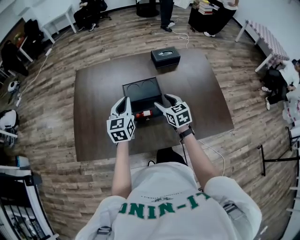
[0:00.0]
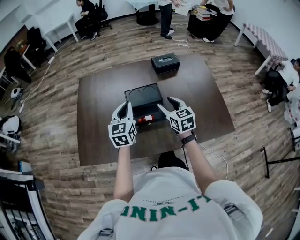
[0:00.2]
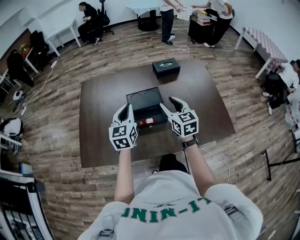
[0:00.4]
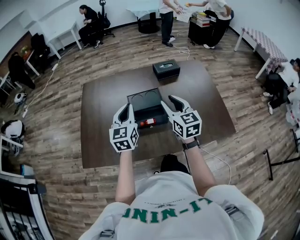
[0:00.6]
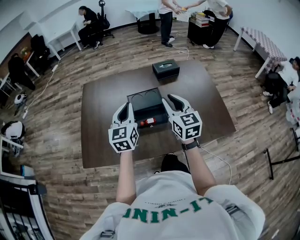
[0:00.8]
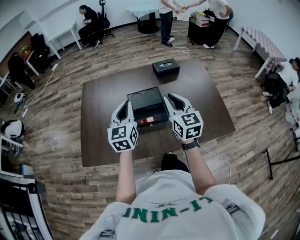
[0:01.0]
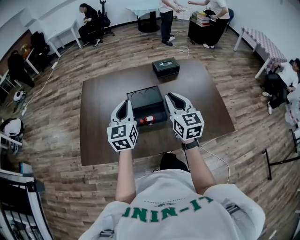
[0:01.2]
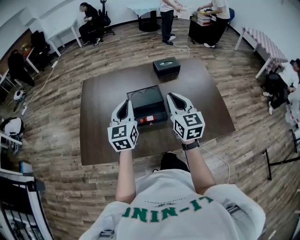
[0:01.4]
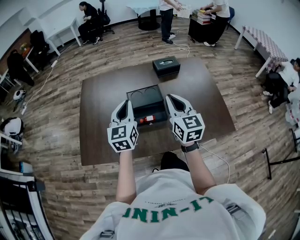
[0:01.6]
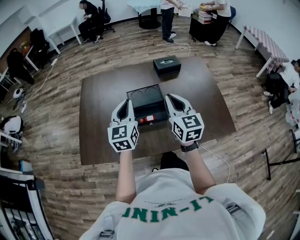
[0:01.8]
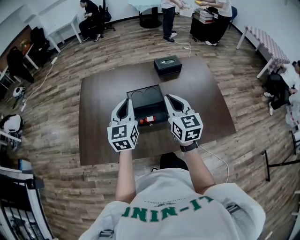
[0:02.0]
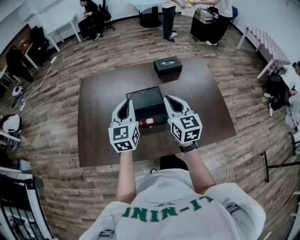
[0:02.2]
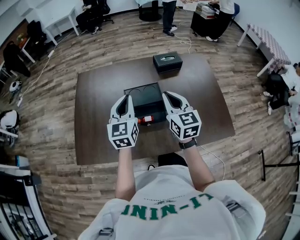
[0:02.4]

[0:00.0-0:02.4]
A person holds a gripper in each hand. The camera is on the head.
0:00.0 to 0:01.2: The left gripper moves upward and backward, about 10 cm; the right gripper heads upward and backward, covering some 20 cm, turns by some 20 degrees, and closes up.
0:01.2 to 0:02.4: Both grippers travel together forward, roughly 5 cm.

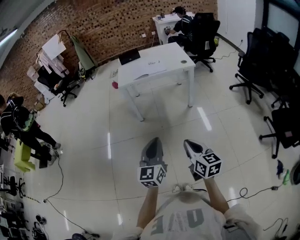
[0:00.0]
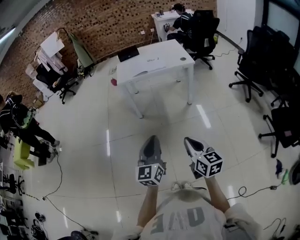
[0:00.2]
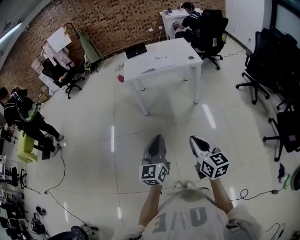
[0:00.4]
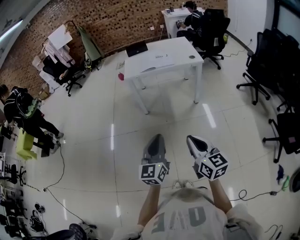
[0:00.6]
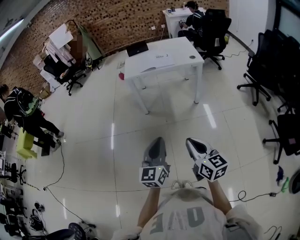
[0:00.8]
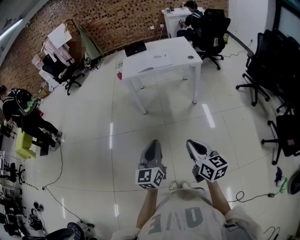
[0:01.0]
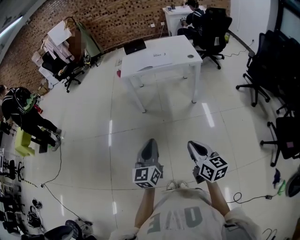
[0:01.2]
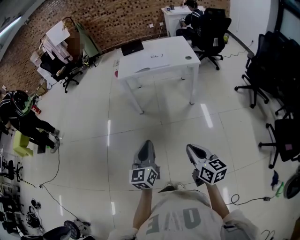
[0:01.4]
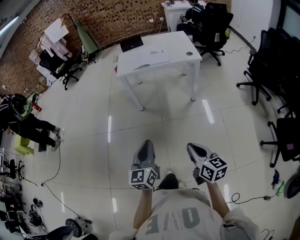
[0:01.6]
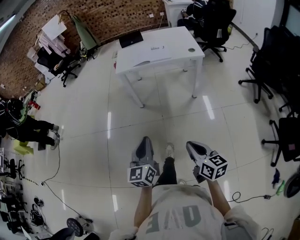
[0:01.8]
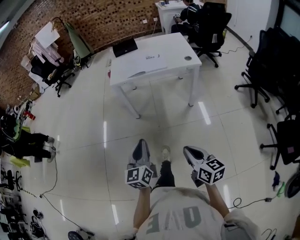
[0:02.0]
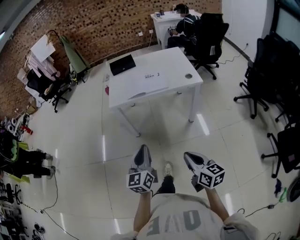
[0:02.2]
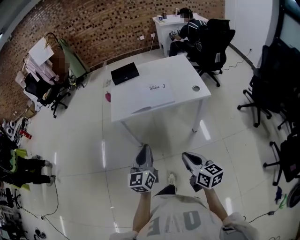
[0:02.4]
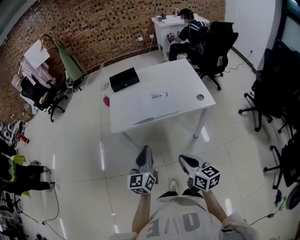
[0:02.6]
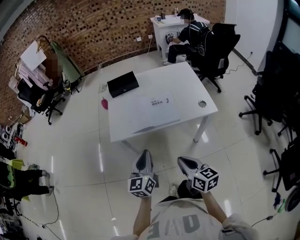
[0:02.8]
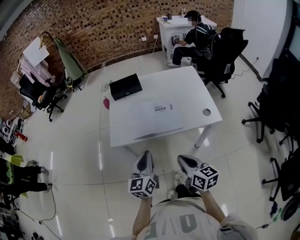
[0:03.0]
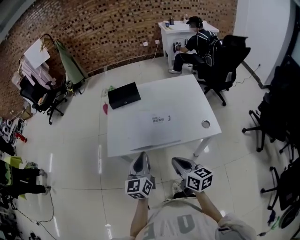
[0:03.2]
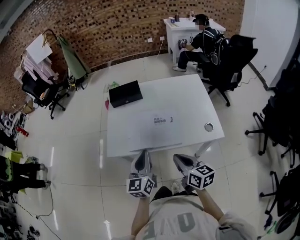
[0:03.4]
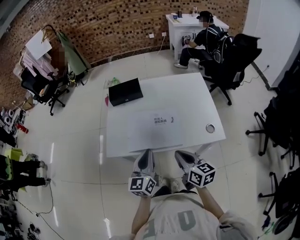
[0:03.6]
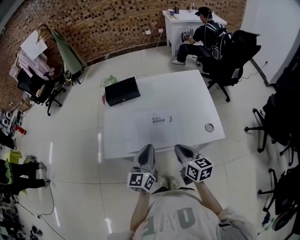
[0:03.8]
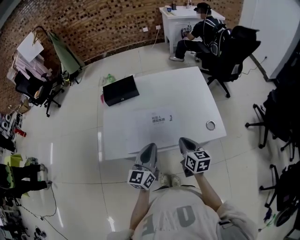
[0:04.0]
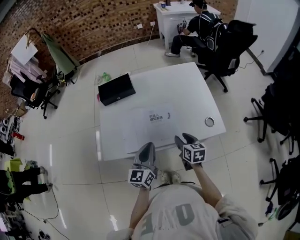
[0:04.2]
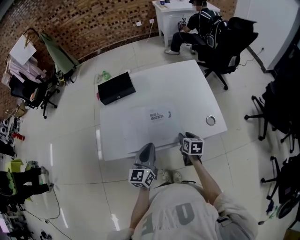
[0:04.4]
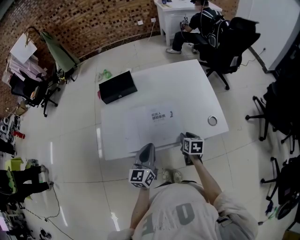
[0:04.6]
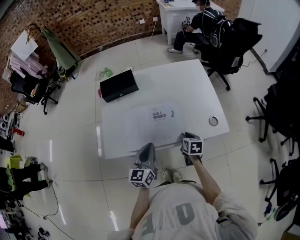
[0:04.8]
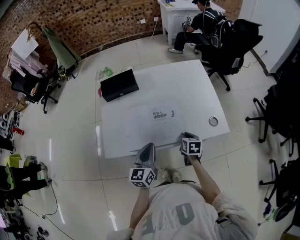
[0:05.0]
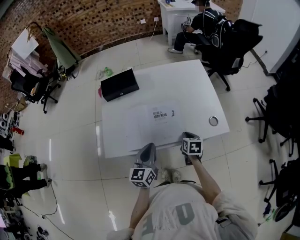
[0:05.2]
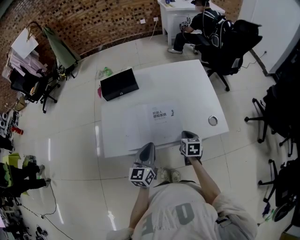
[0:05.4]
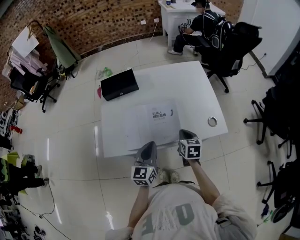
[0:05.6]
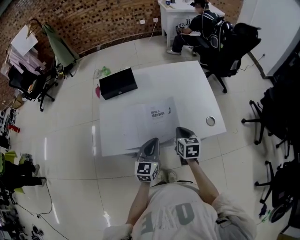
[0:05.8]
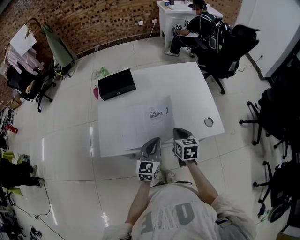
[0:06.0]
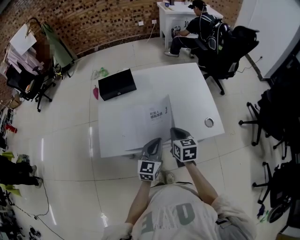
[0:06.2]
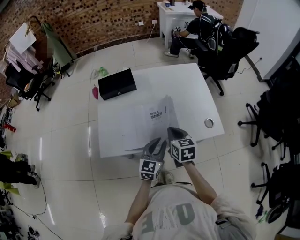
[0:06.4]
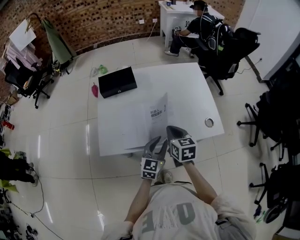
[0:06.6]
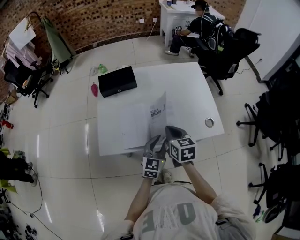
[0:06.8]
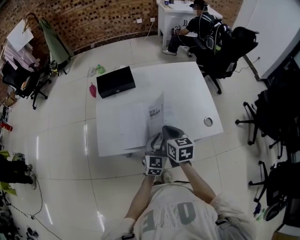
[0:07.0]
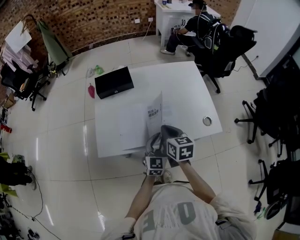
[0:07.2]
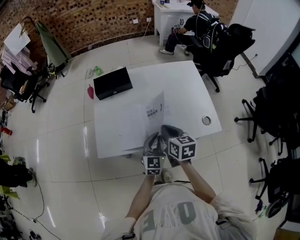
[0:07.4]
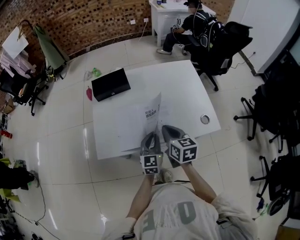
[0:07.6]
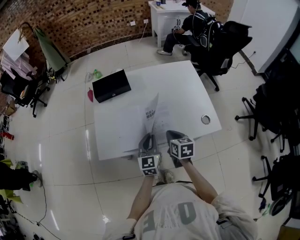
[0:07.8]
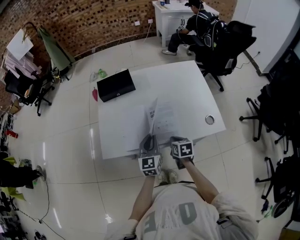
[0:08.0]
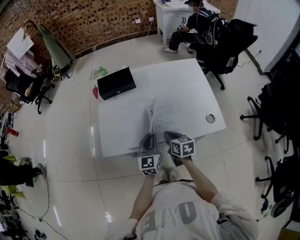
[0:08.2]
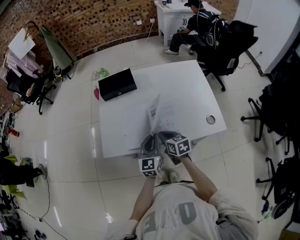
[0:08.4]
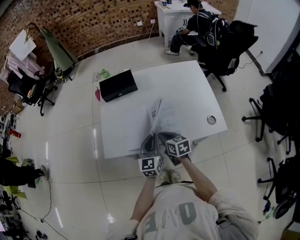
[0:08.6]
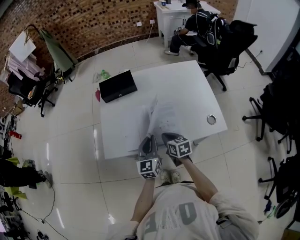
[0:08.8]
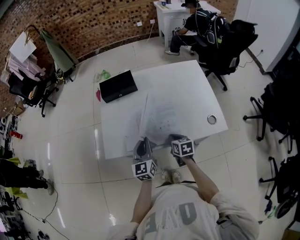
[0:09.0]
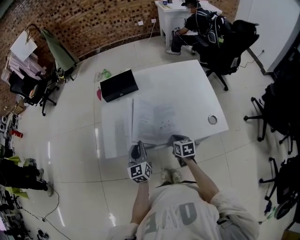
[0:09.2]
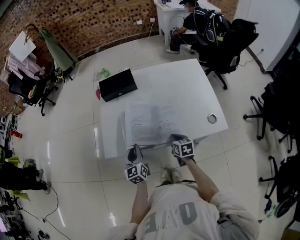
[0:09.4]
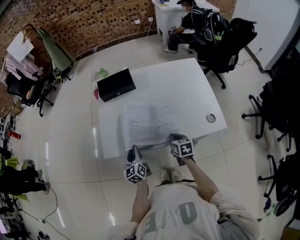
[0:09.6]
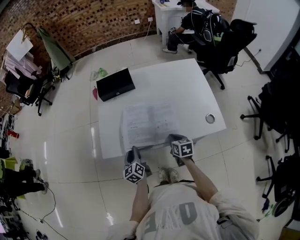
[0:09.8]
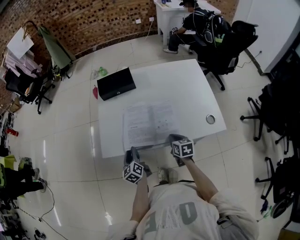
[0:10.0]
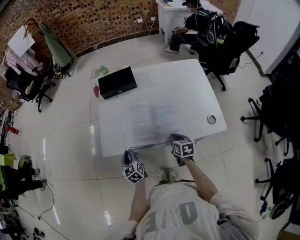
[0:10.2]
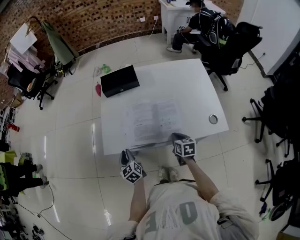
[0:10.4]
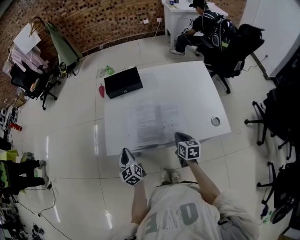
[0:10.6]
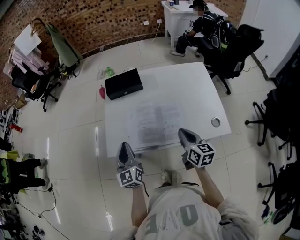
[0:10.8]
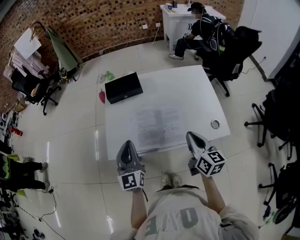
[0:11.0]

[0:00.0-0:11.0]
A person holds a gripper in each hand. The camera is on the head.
0:00.0 to 0:01.6: The left gripper changes place by roughly 5 cm, while the right gripper heads to the right, covering roughly 5 cm.
0:01.6 to 0:03.2: The two grippers travel together, forward, approximately 60 cm.
0:03.2 to 0:04.8: The right gripper is displaced downward, forward and to the right by approximately 30 cm, angles its fingers downward, by roughly 30 degrees, and opens, then closes once more. Meanwhile the left gripper goes roughly 15 cm forward and downward.
0:04.8 to 0:06.2: The left gripper shifts approximately 5 cm to the right; the right gripper travels upward and to the left by approximately 15 cm, and closes its fingers.
0:06.2 to 0:07.8: The left gripper opens, then closes again.
0:07.8 to 0:09.4: The right gripper moves up and down over approximately 10 cm, changing direction 2 times. The left gripper is displaced to the left by about 15 cm.
0:09.4 to 0:11.0: Both grippers travel together upward, roughly 20 cm. The left gripper changes its angle by approximately 20 degrees, while the right gripper points its fingers some 30 degrees further upward.

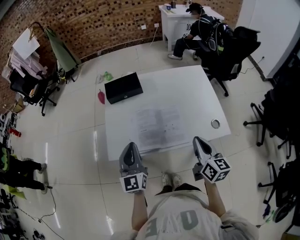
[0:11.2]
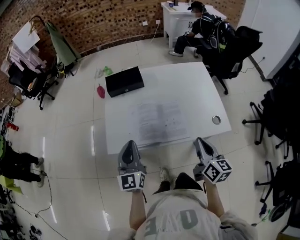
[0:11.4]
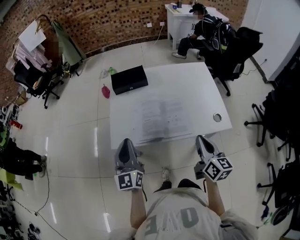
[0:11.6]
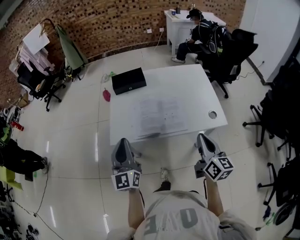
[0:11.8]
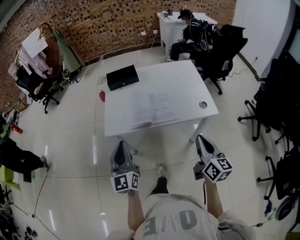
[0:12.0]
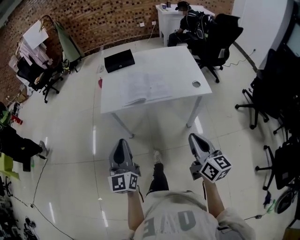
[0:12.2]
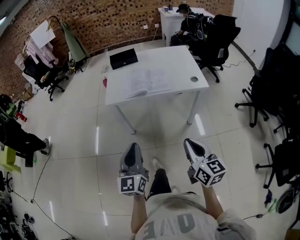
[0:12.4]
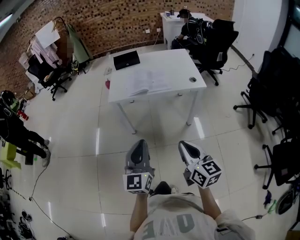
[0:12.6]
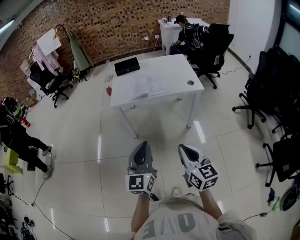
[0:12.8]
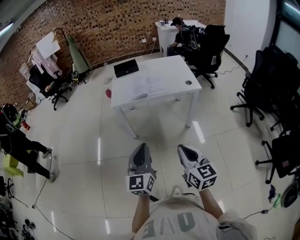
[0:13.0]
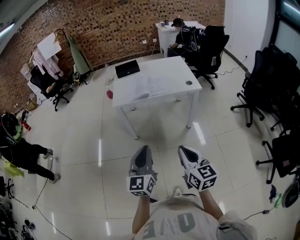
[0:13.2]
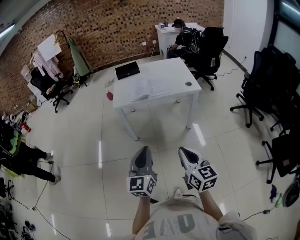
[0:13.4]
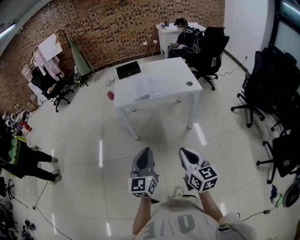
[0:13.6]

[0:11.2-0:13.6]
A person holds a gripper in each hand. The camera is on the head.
0:11.2 to 0:12.4: The two grippers travel together, backward, approximately 40 cm.
0:12.4 to 0:13.6: The left gripper heads backward, covering about 15 cm; the right gripper is displaced backward and to the left by about 15 cm.

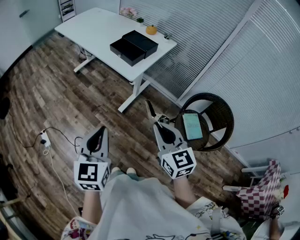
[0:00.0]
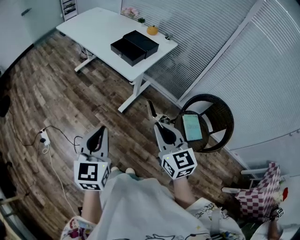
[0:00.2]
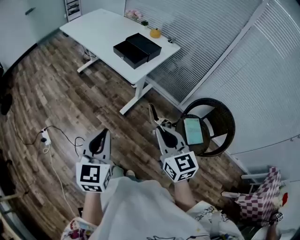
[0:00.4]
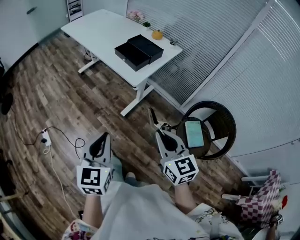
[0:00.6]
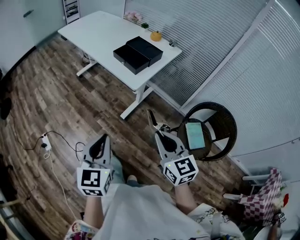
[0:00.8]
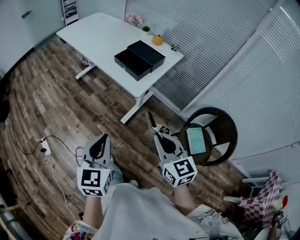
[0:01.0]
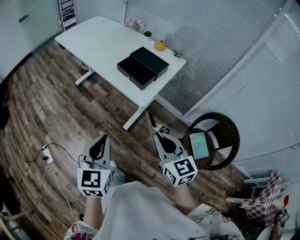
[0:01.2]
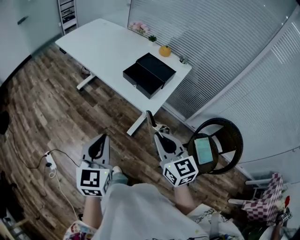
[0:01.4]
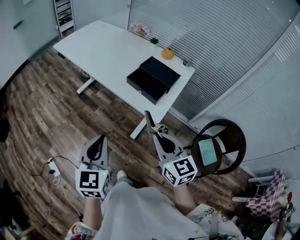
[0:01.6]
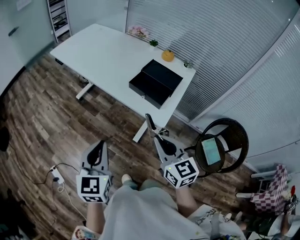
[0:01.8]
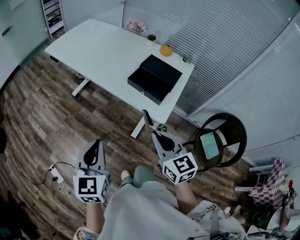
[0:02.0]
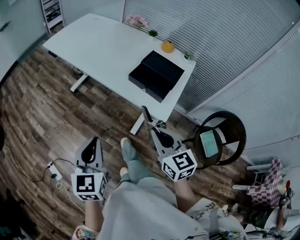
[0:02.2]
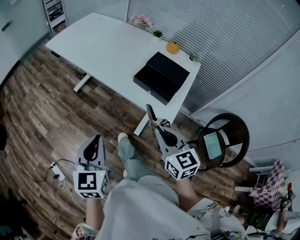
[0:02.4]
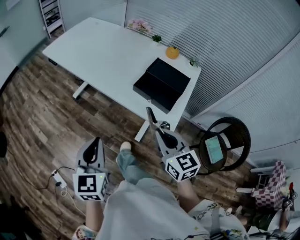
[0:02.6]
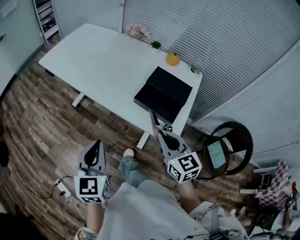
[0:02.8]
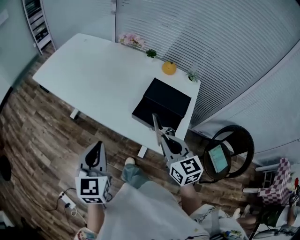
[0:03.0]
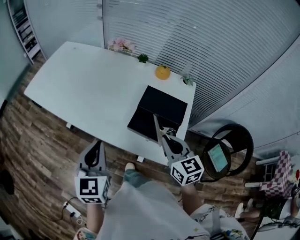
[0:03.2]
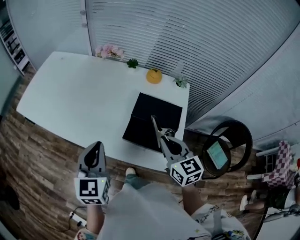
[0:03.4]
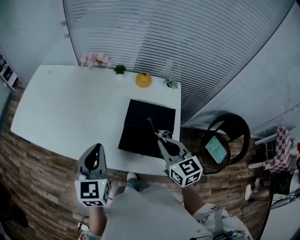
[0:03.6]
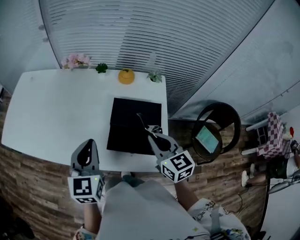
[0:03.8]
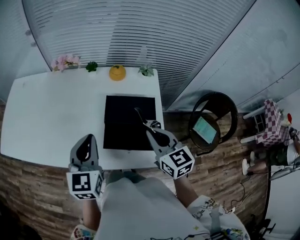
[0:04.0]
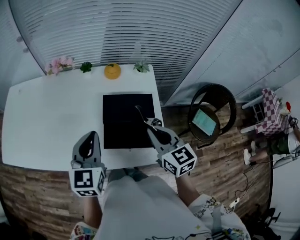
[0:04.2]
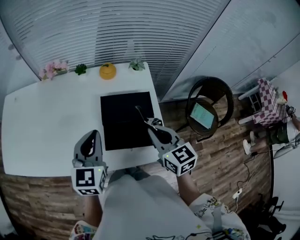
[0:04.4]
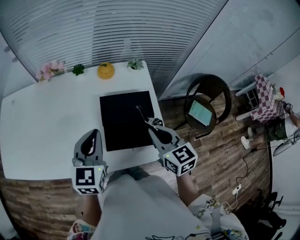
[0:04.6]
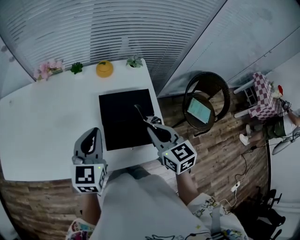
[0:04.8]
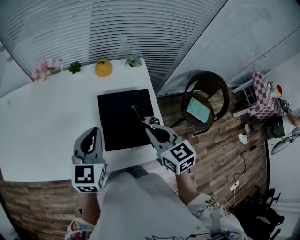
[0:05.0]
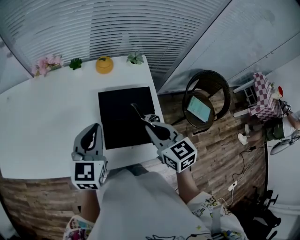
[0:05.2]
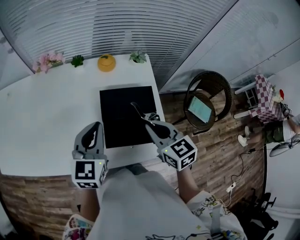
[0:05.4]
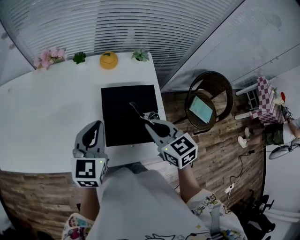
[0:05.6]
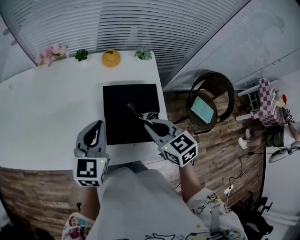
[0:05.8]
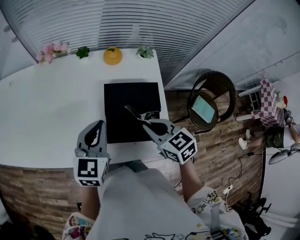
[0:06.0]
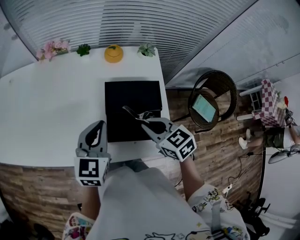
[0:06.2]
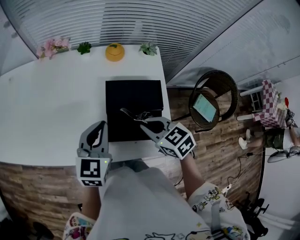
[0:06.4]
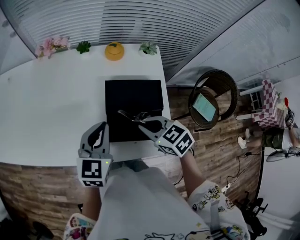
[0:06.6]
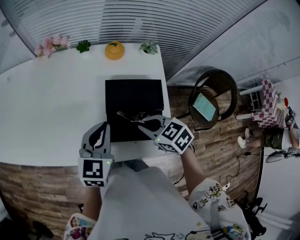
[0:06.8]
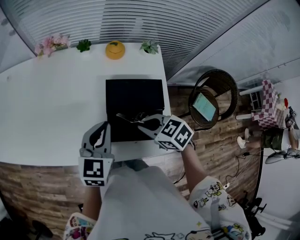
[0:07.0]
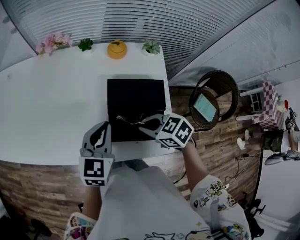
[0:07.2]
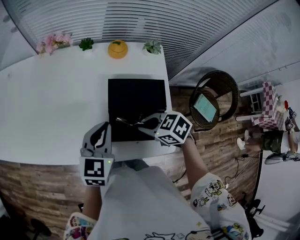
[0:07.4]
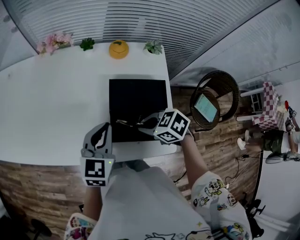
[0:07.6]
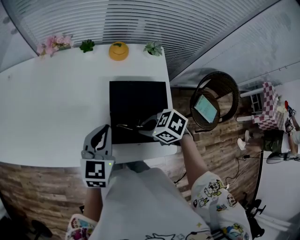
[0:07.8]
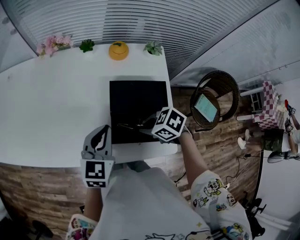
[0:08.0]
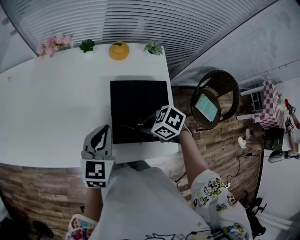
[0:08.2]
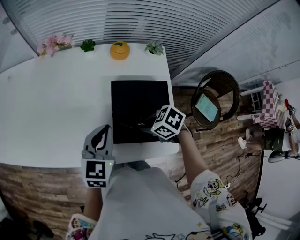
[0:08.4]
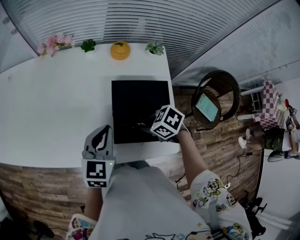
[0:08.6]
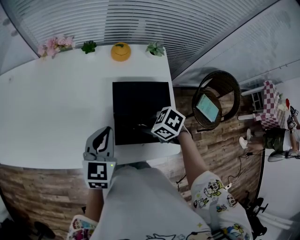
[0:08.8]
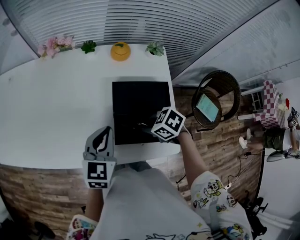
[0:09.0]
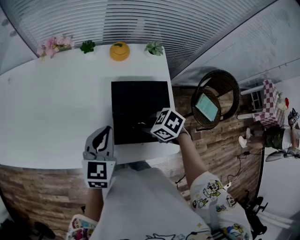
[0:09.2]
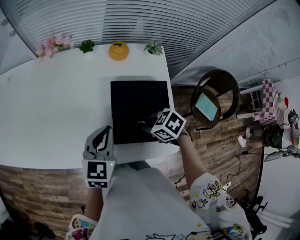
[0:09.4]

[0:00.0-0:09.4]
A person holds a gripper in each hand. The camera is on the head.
0:00.0 to 0:01.6: Both grippers travel together forward and to the left, roughly 30 cm.
0:01.6 to 0:03.2: Both grippers travel together forward, approximately 30 cm.
0:03.2 to 0:04.8: The right gripper ends up approximately 5 cm from where it was, and changes its angle by roughly 30 degrees; the left gripper shifts by about 20 cm, and rotates some 40 degrees.
0:04.8 to 0:06.2: The right gripper travels downward by approximately 5 cm, and changes its angle by some 30 degrees.
0:06.2 to 0:07.8: The right gripper heads downward, covering some 5 cm, and changes its angle by approximately 40 degrees.
0:07.8 to 0:09.4: The grippers move only a little.
